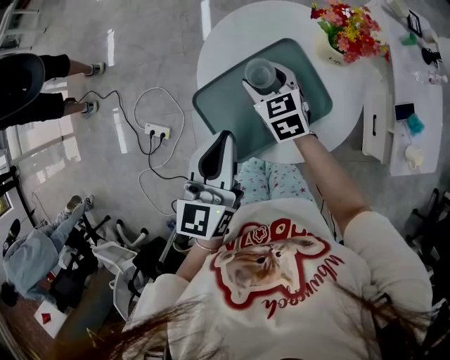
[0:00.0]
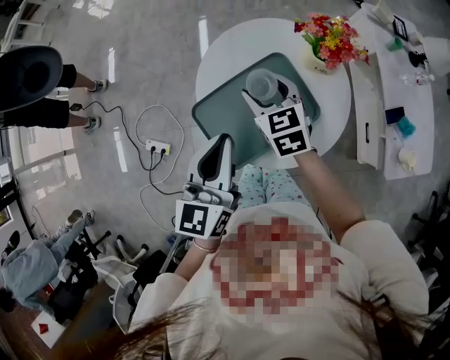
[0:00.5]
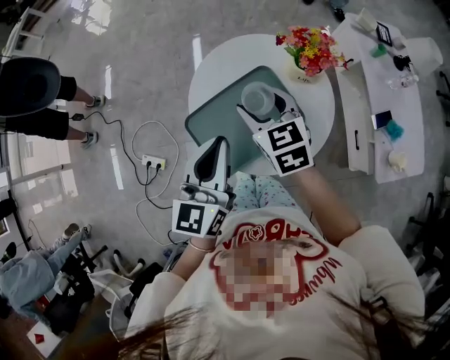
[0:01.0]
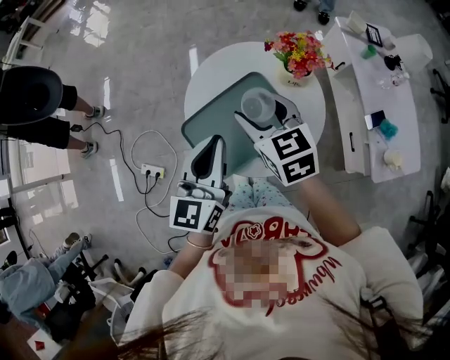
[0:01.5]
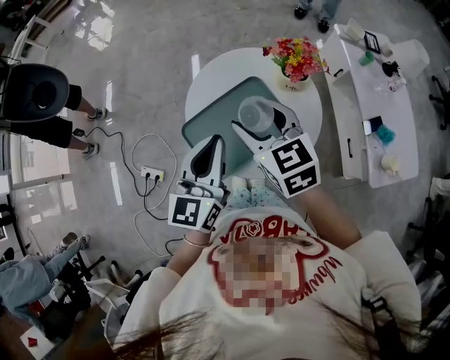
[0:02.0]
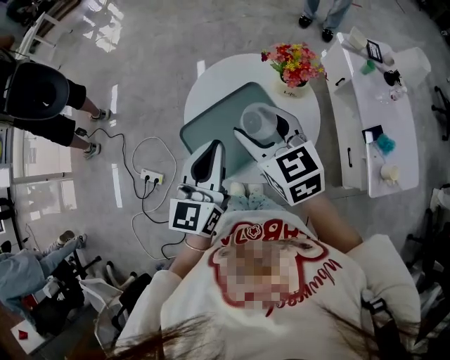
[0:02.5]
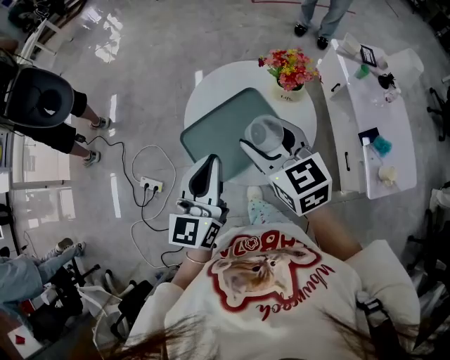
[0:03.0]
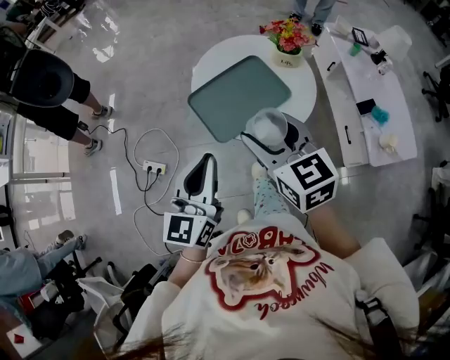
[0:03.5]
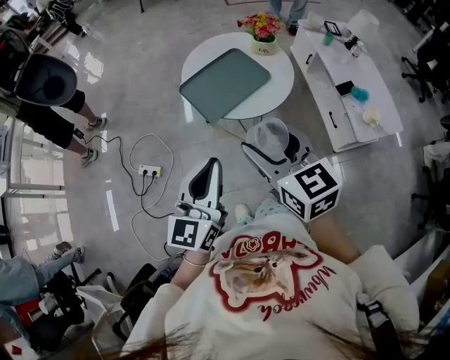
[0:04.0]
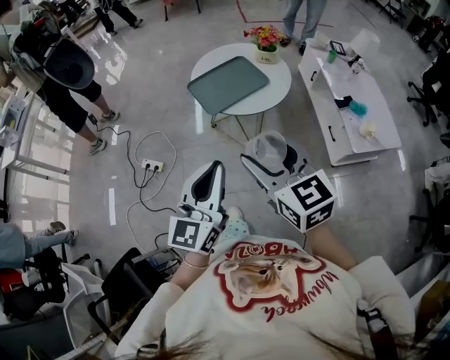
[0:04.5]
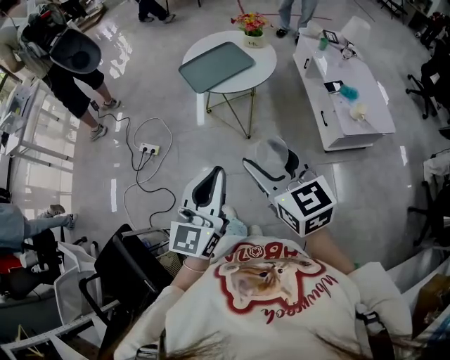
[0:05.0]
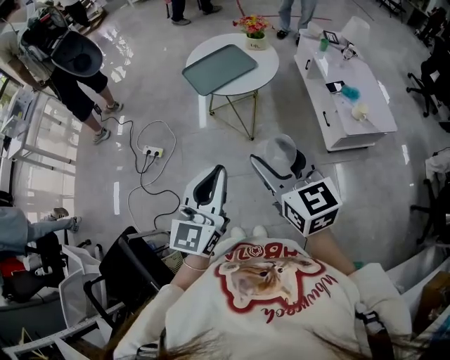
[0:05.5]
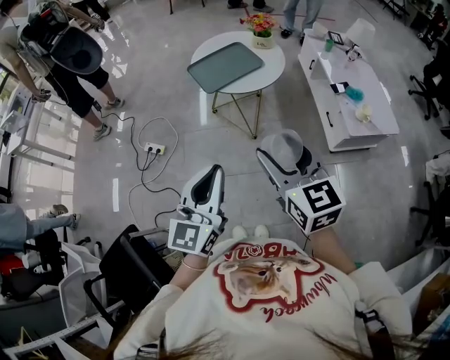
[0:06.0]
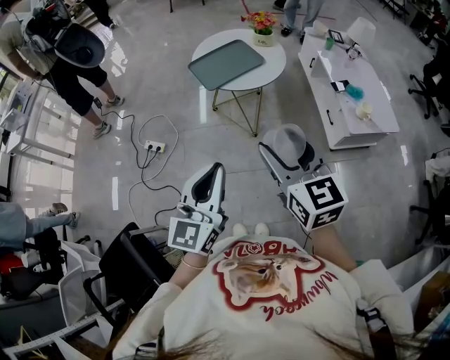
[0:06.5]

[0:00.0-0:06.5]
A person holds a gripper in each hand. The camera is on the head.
0:00.0 to 0:02.0: The right gripper heads upward and backward, covering about 20 cm, while the left gripper goes approximately 5 cm upward.
0:02.0 to 0:04.5: The two grippers travel together, backward, approximately 40 cm.
0:04.5 to 0:06.5: The left gripper travels backward by some 10 cm. The right gripper heads backward and to the right, covering approximately 10 cm.

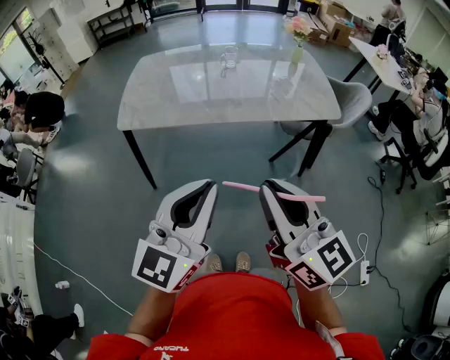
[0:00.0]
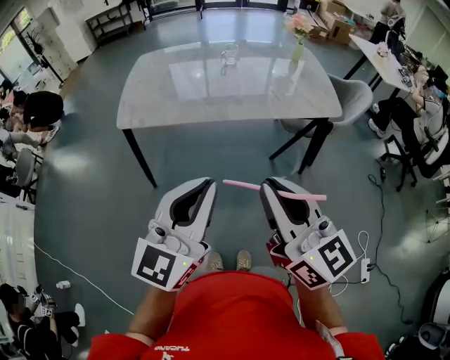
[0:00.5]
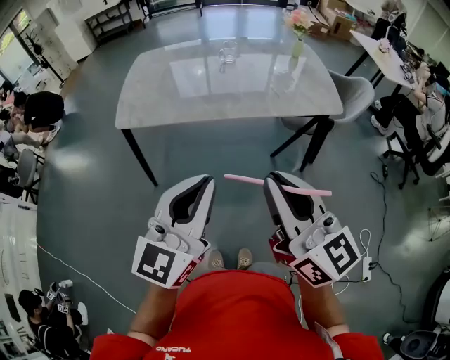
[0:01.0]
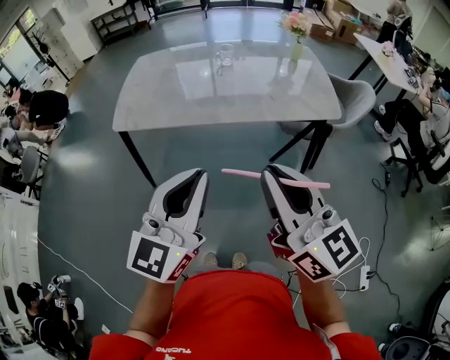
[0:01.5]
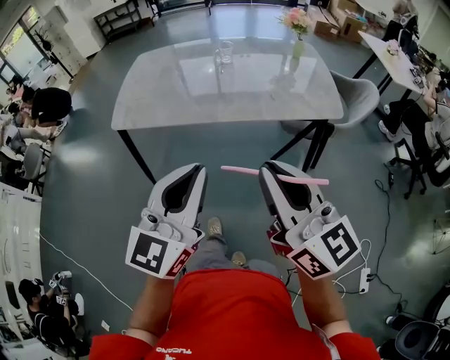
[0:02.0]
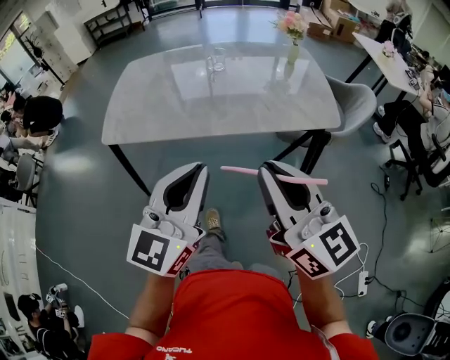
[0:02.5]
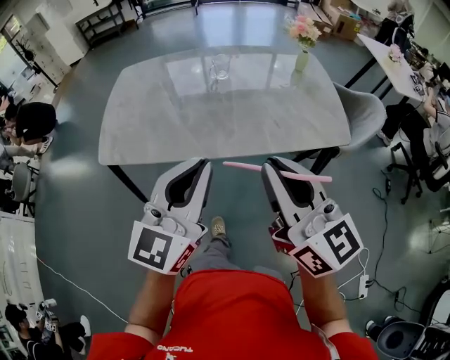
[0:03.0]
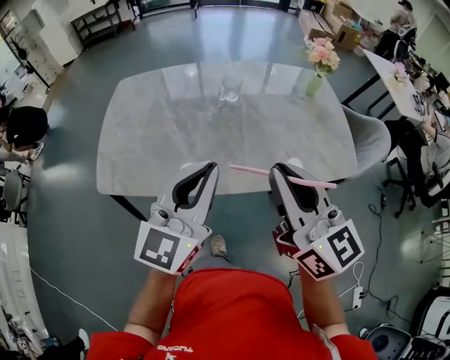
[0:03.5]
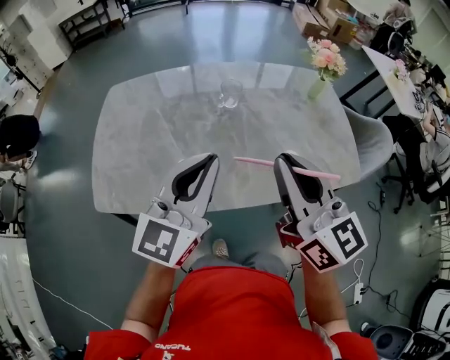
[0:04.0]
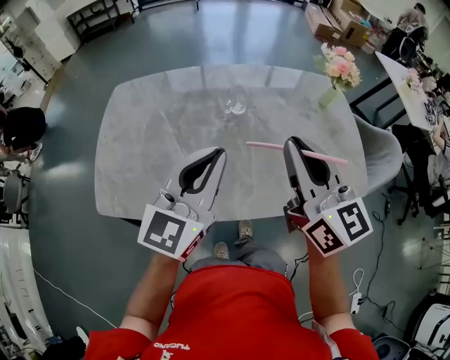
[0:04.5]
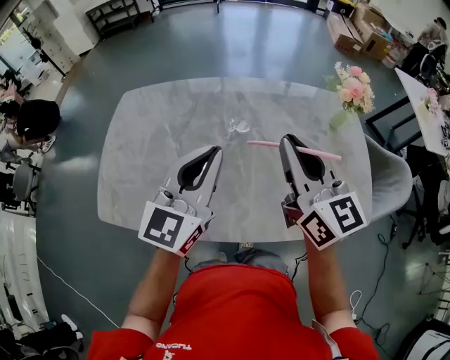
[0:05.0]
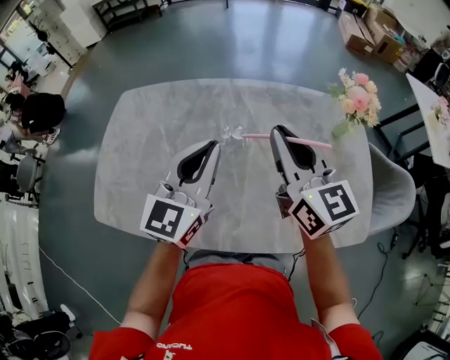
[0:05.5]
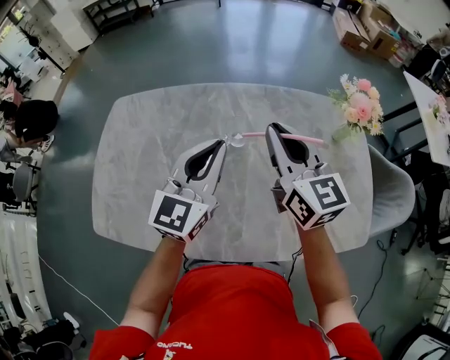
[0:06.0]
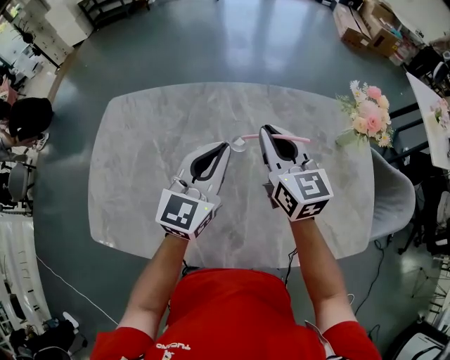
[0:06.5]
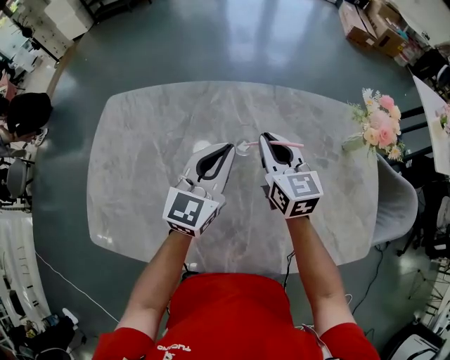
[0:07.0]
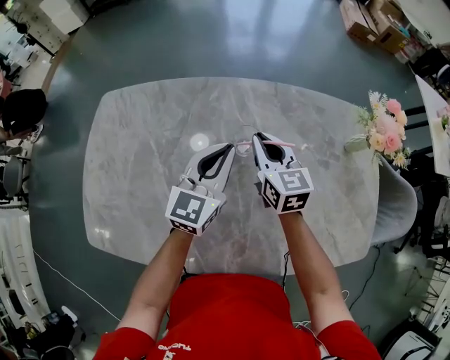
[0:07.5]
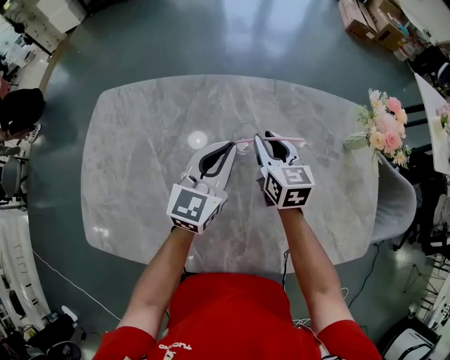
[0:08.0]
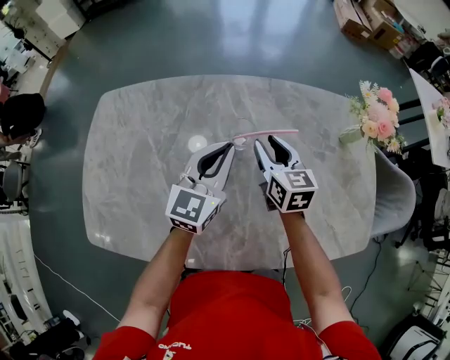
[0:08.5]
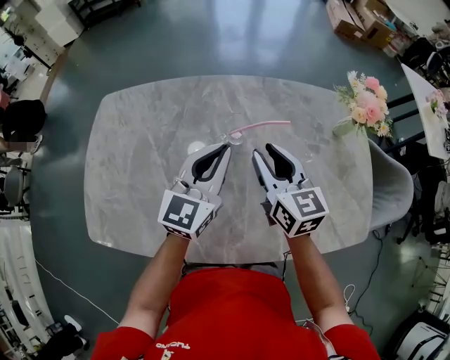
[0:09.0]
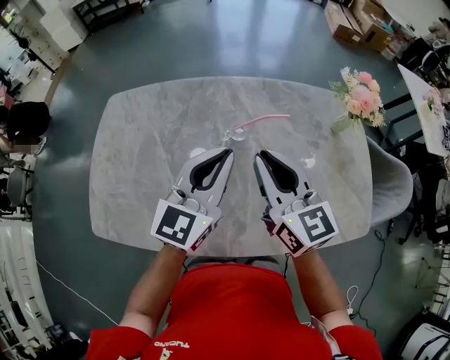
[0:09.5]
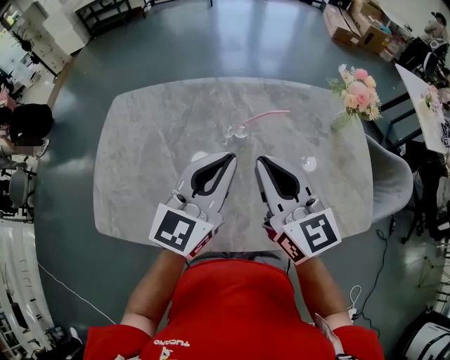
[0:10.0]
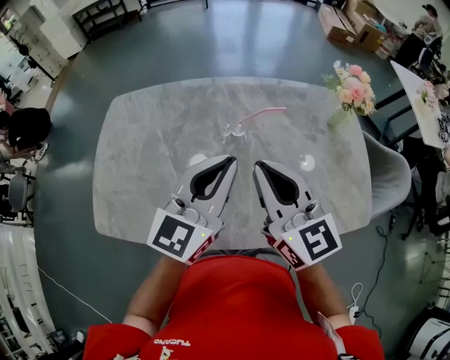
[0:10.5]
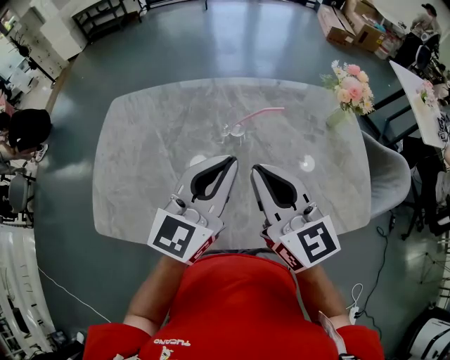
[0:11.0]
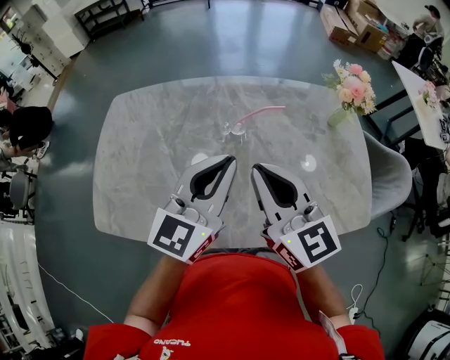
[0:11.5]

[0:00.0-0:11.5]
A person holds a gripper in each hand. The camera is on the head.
0:00.0 to 0:02.0: The grippers both shift to the right and forward by approximately 10 cm.
0:02.0 to 0:04.0: The two grippers go about 40 cm forward.
0:04.0 to 0:06.0: The grippers both shift forward by approximately 25 cm.
0:06.0 to 0:07.5: The two grippers go approximately 15 cm downward and forward.
0:07.5 to 0:09.5: The two grippers go roughly 20 cm backward and upward. The right gripper opens, then closes once more.
0:09.5 to 0:11.5: Both grippers travel together backward, approximately 5 cm.

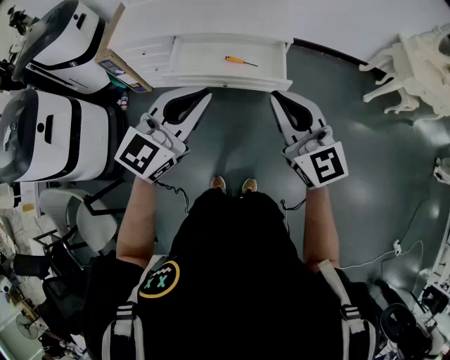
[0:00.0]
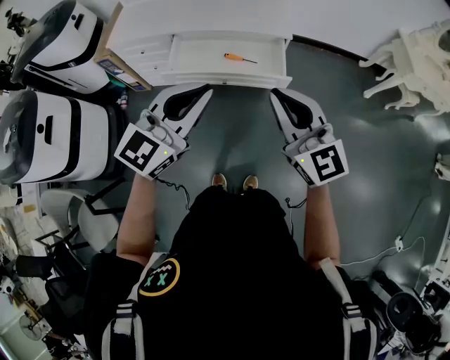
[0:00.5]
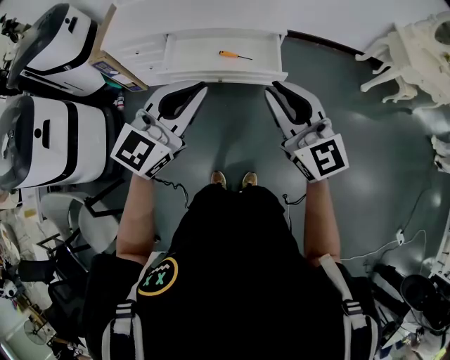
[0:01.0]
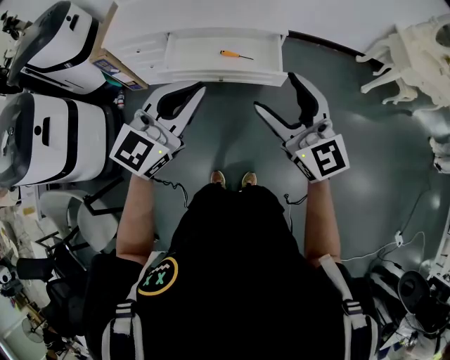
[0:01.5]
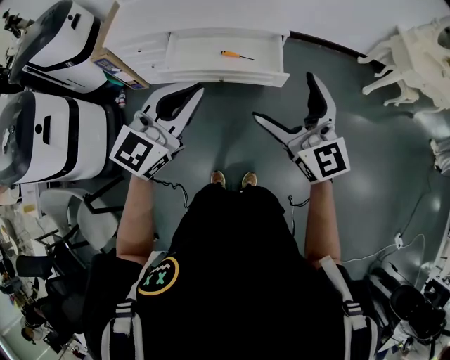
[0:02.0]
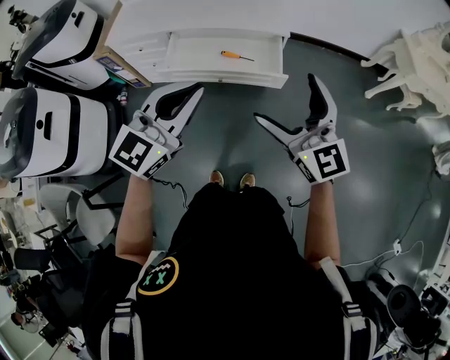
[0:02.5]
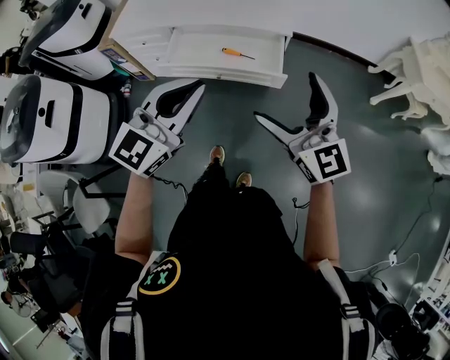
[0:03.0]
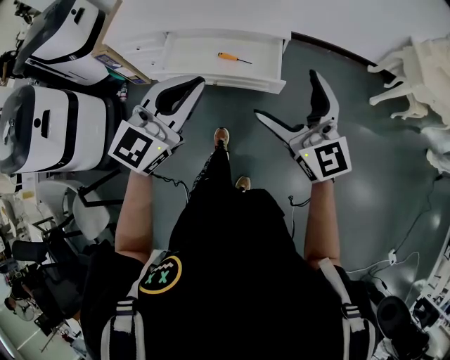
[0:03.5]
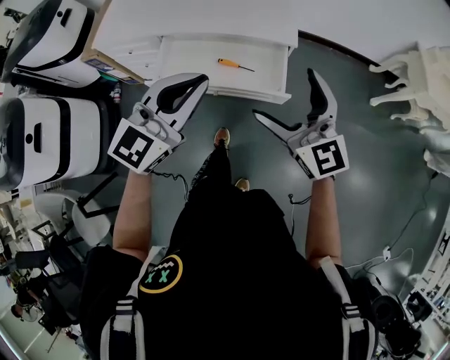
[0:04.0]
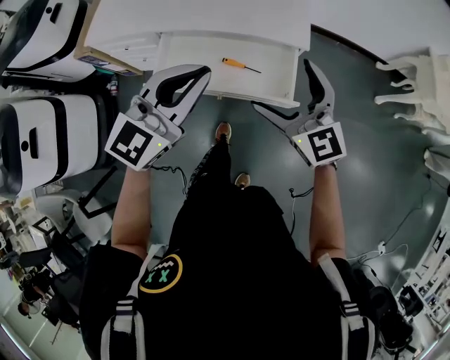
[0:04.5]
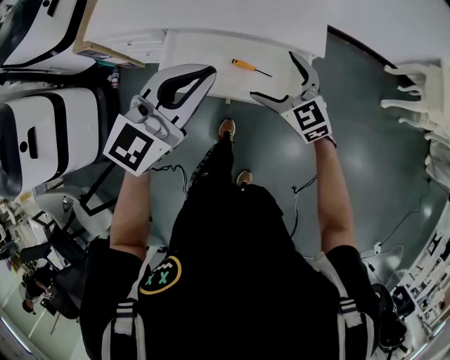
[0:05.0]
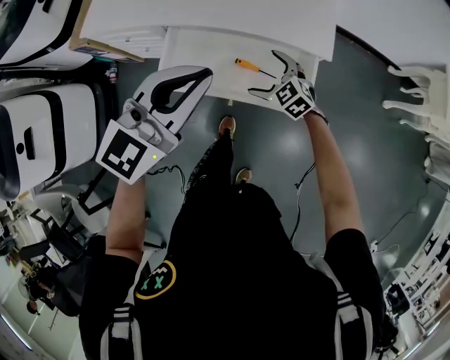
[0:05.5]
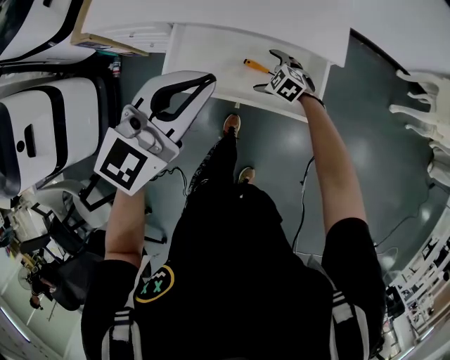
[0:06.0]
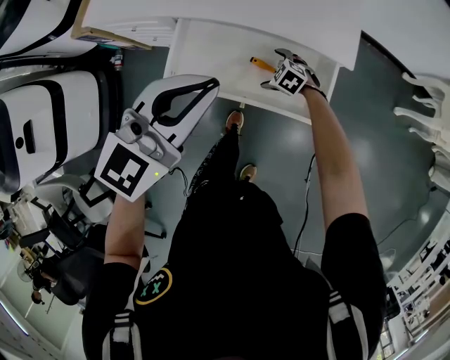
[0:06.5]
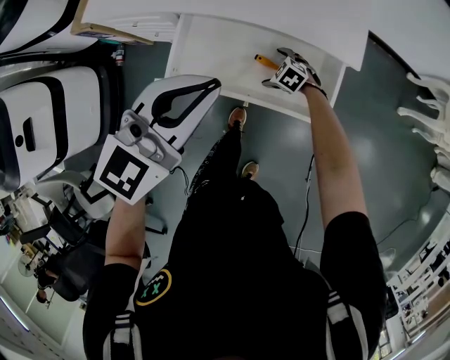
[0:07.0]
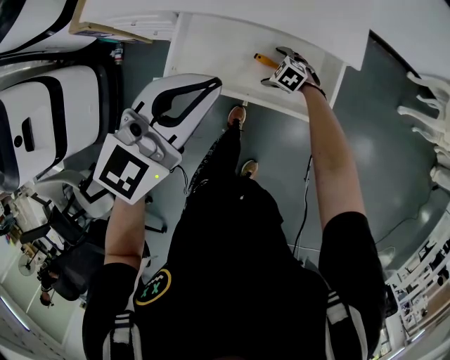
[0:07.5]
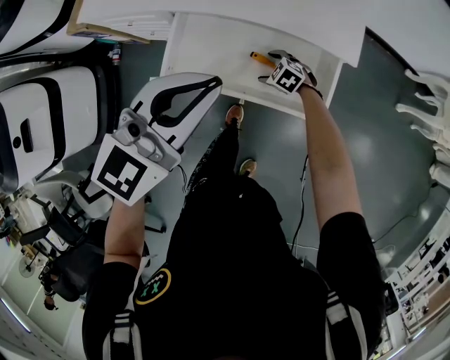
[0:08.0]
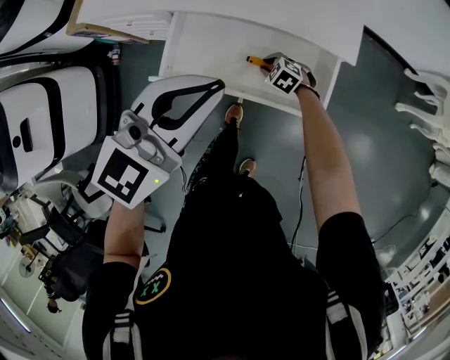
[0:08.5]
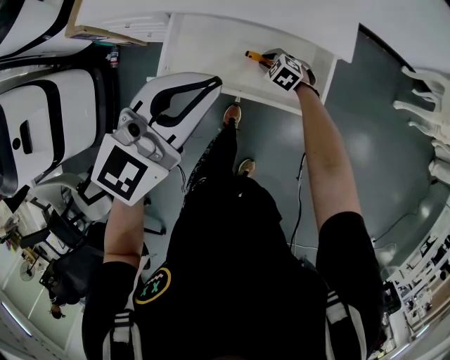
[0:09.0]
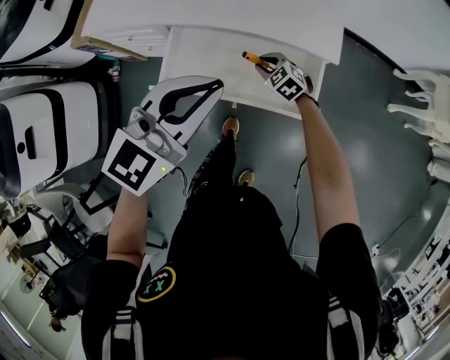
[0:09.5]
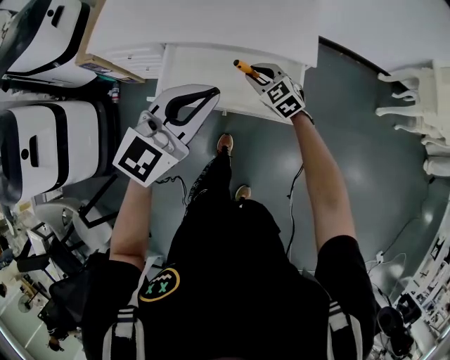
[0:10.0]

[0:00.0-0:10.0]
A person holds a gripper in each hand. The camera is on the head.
0:00.0 to 0:02.0: The right gripper opens up.
0:02.0 to 0:04.0: The two grippers go some 15 cm forward.
0:04.0 to 0:06.0: The left gripper travels forward by approximately 15 cm. The right gripper is displaced downward and forward by approximately 50 cm, and tips its fingers downward by about 60 degrees.
0:06.0 to 0:08.0: The right gripper heads downward, covering roughly 5 cm.
0:08.0 to 0:10.0: The right gripper shifts approximately 20 cm upward, changes its angle by approximately 30 degrees, and closes its fingers. Meanwhile the left gripper moves backward, about 5 cm.
